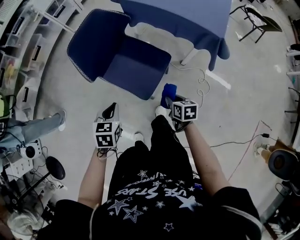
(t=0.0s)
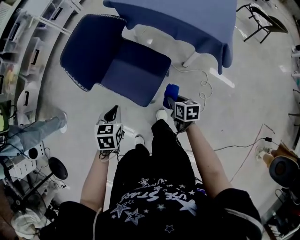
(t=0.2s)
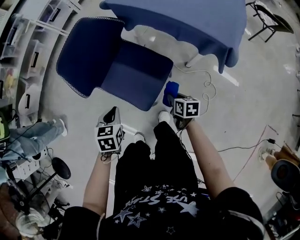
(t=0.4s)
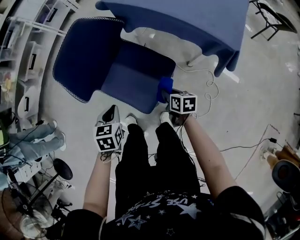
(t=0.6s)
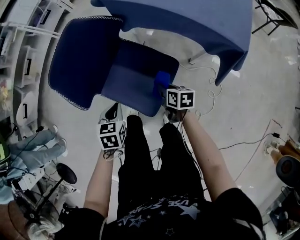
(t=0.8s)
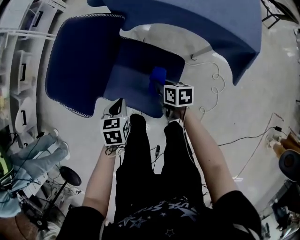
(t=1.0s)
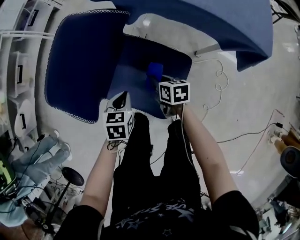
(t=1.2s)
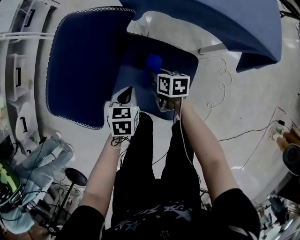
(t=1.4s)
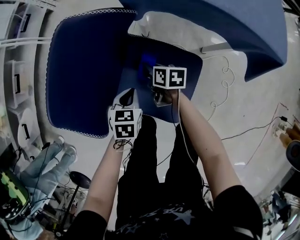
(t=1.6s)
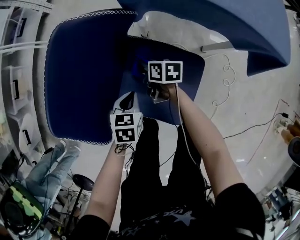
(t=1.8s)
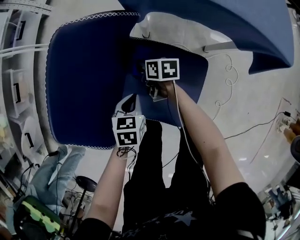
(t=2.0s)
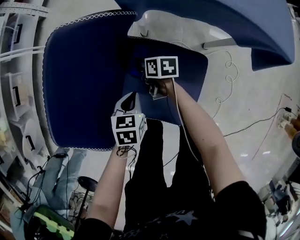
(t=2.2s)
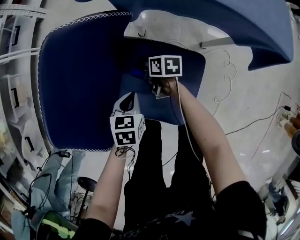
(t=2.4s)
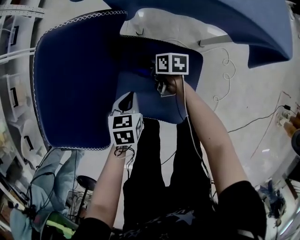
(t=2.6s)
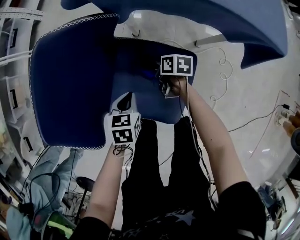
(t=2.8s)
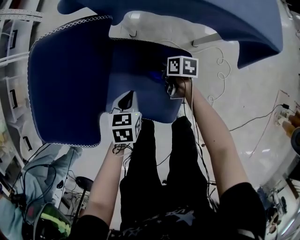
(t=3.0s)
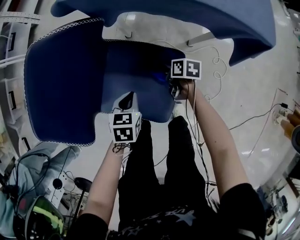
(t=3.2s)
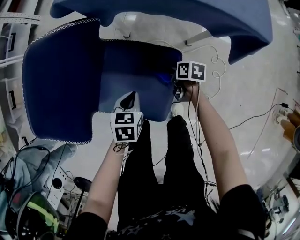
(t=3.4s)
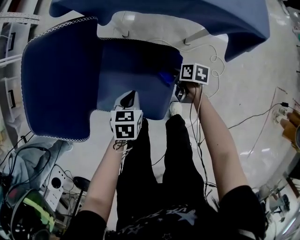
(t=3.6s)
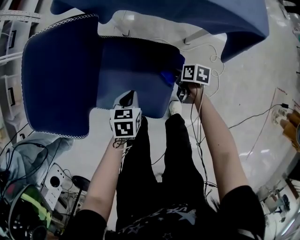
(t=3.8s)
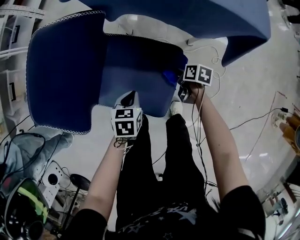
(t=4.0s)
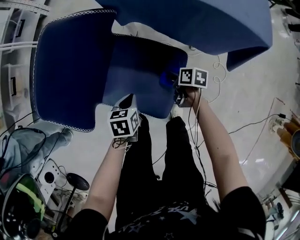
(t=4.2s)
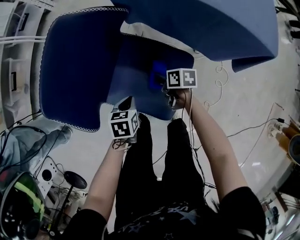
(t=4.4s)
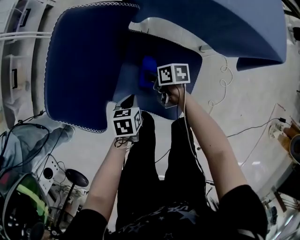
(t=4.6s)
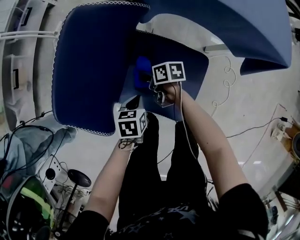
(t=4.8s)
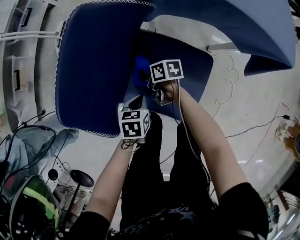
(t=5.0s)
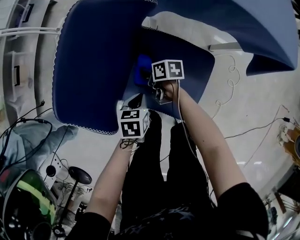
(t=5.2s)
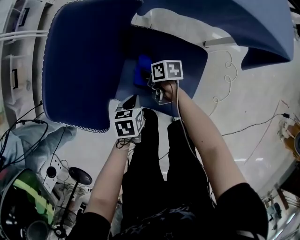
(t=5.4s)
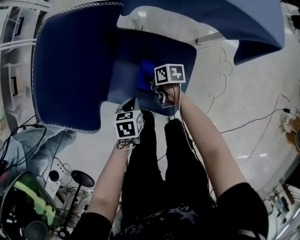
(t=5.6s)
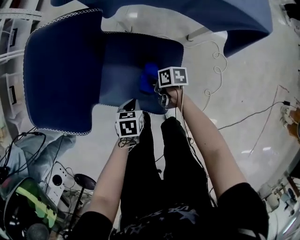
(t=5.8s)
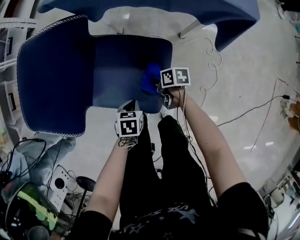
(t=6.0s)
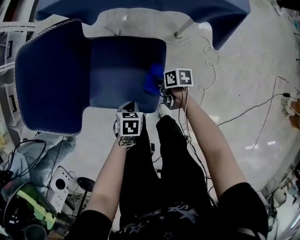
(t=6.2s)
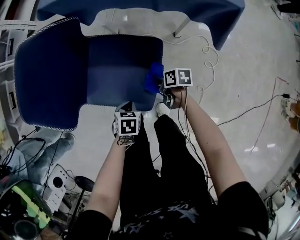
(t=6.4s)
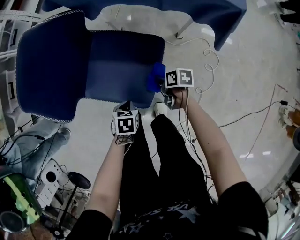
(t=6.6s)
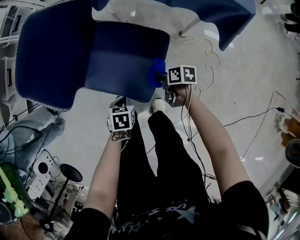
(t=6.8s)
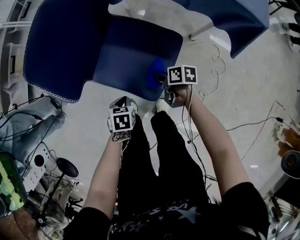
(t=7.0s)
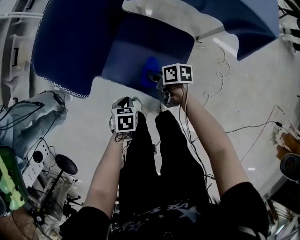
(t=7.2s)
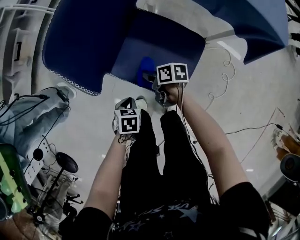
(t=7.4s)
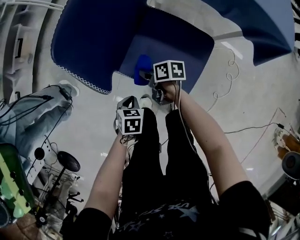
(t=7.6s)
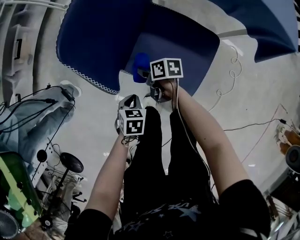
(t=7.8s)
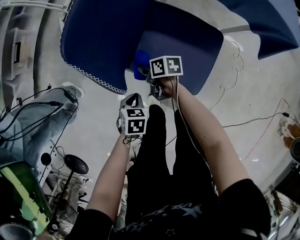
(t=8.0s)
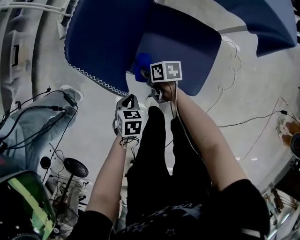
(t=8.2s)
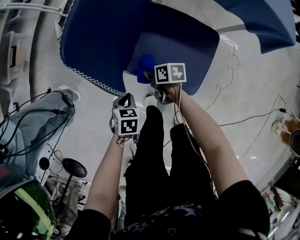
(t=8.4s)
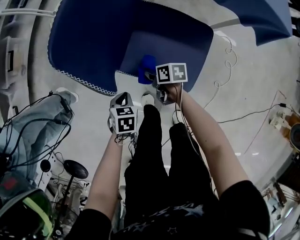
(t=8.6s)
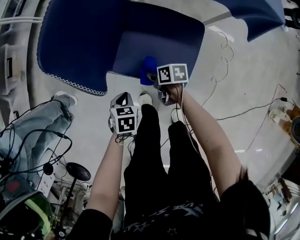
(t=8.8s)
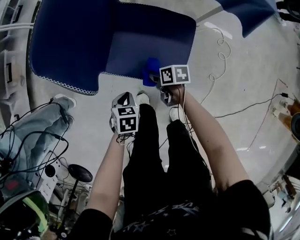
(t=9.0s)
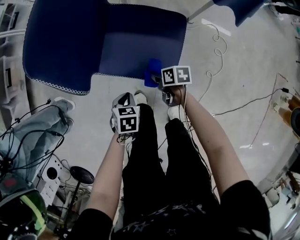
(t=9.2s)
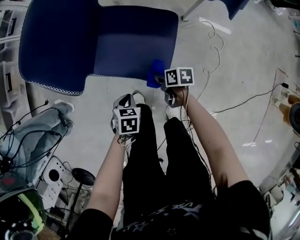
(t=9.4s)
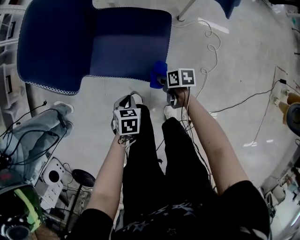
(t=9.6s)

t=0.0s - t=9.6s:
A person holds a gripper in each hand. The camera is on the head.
t=0.0s - t=1.6s: The left gripper is displaced forward and downward by approximately 35 cm. The right gripper shifts about 40 cm forward, downward and to the left, and changes its angle by roughly 20 degrees.
t=1.6s - t=3.2s: The right gripper heads to the right, covering roughly 15 cm. Meanwhile the left gripper heads to the right, covering some 10 cm.
t=3.2s - t=4.8s: The right gripper goes about 25 cm to the left, and changes its angle by some 20 degrees, while the left gripper moves to the left, about 10 cm.
t=4.8s - t=6.4s: The left gripper is displaced backward and to the right by some 15 cm, and turns by about 20 degrees. Meanwhile the right gripper goes approximately 30 cm to the right and backward.
t=6.4s - t=8.0s: Both grippers move to the left, approximately 30 cm.
t=8.0s - t=9.6s: The left gripper heads to the right and backward, covering roughly 15 cm, while the right gripper moves to the right and backward, approximately 30 cm.

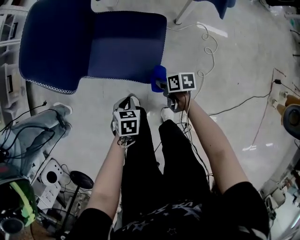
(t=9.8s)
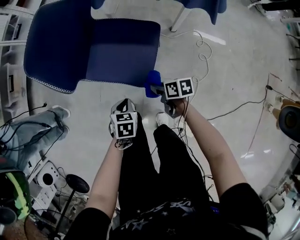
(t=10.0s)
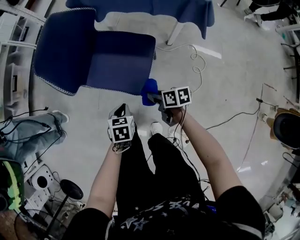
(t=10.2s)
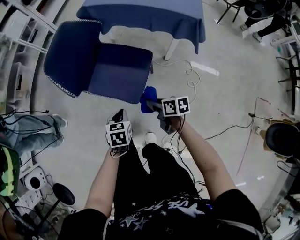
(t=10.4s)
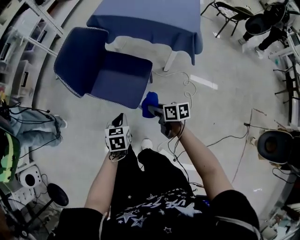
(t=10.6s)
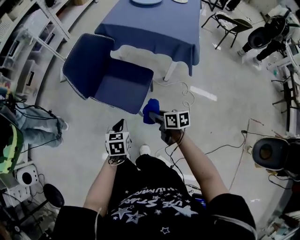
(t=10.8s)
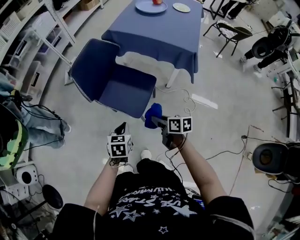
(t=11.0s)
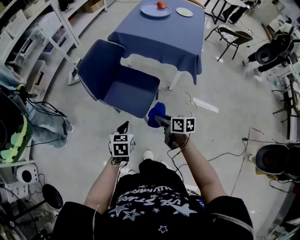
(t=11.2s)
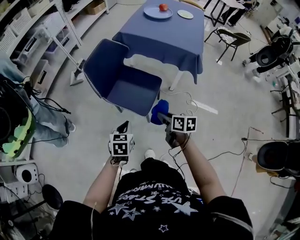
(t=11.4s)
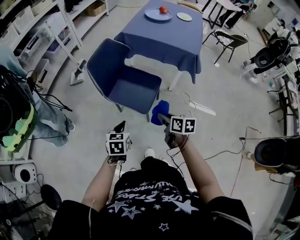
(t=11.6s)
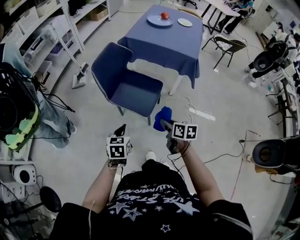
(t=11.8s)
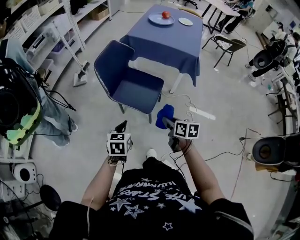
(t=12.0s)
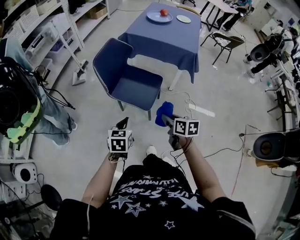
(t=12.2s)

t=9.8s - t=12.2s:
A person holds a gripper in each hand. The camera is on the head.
t=9.8s - t=11.0s: The grippers both shift upward by about 25 cm. The left gripper swivels approximately 30 degrees. Meanwhile the right gripper swivels about 30 degrees.
t=11.0s - t=12.2s: The left gripper travels to the left, upward and backward by approximately 15 cm. Meanwhile the right gripper moves backward, upward and to the left, roughly 15 cm.

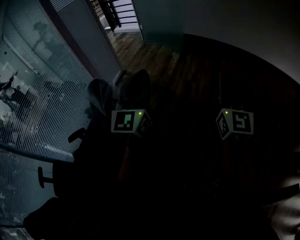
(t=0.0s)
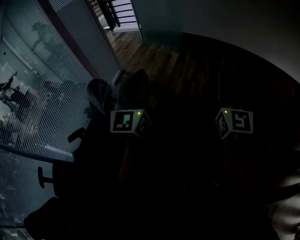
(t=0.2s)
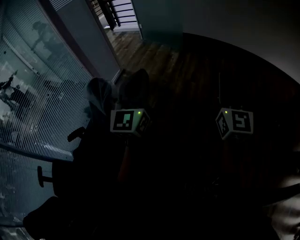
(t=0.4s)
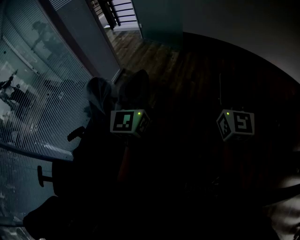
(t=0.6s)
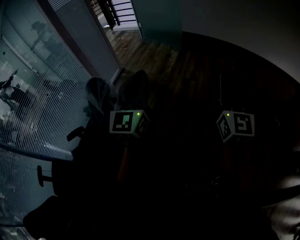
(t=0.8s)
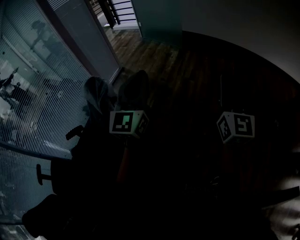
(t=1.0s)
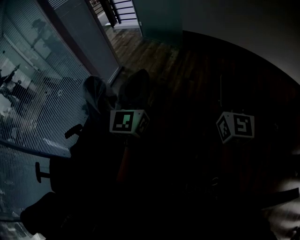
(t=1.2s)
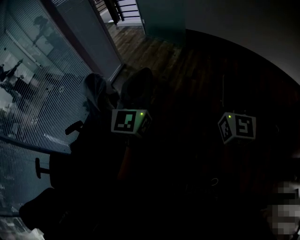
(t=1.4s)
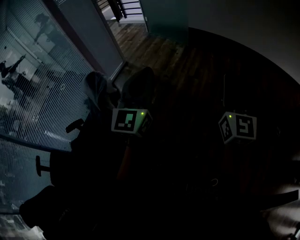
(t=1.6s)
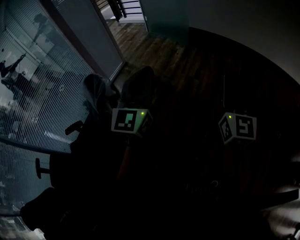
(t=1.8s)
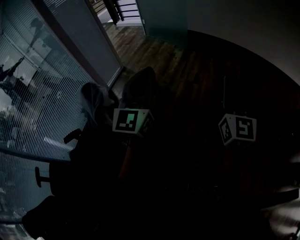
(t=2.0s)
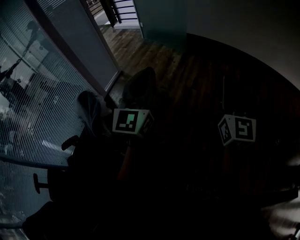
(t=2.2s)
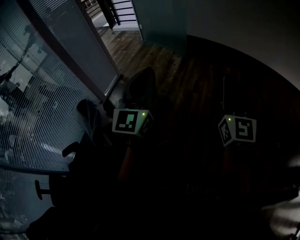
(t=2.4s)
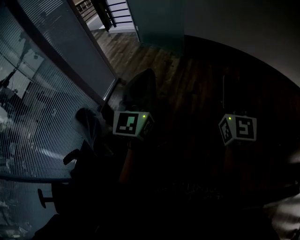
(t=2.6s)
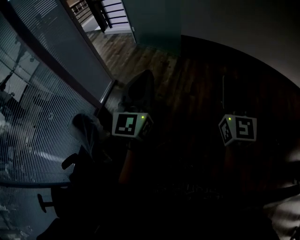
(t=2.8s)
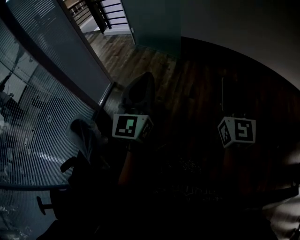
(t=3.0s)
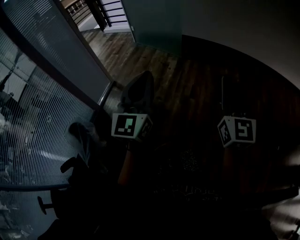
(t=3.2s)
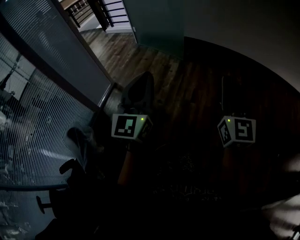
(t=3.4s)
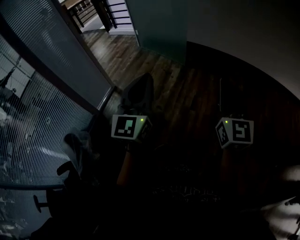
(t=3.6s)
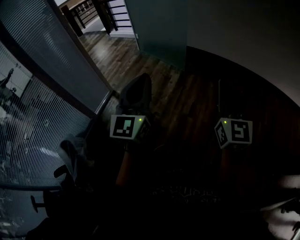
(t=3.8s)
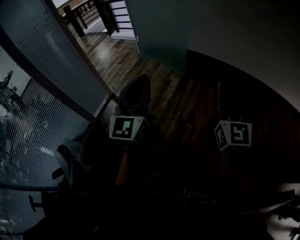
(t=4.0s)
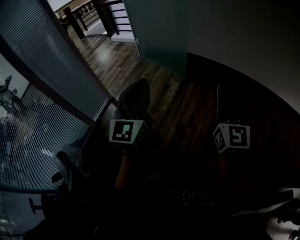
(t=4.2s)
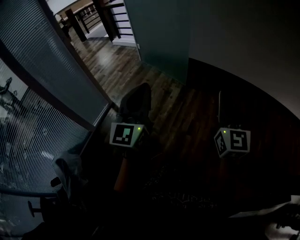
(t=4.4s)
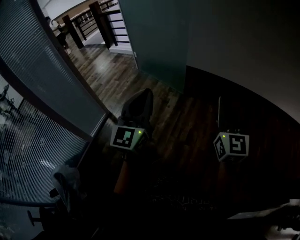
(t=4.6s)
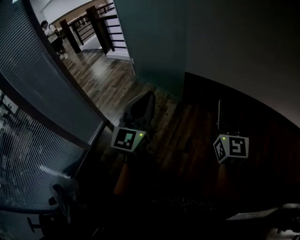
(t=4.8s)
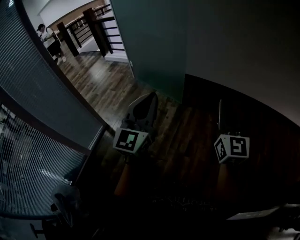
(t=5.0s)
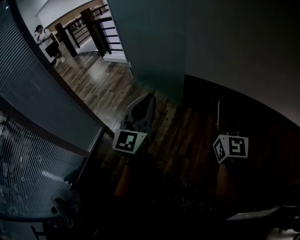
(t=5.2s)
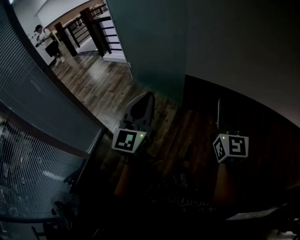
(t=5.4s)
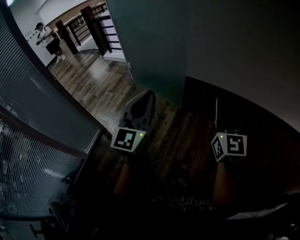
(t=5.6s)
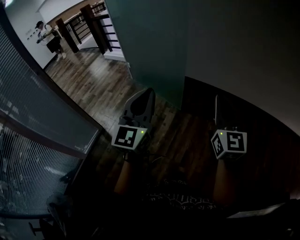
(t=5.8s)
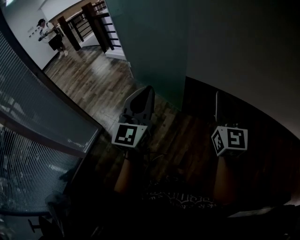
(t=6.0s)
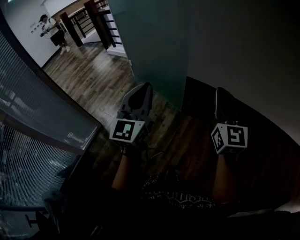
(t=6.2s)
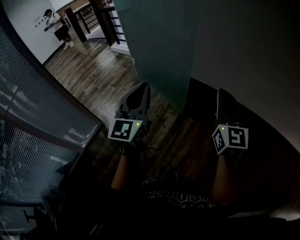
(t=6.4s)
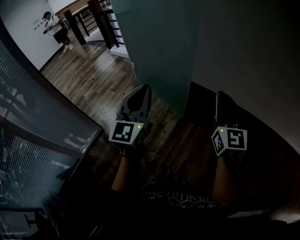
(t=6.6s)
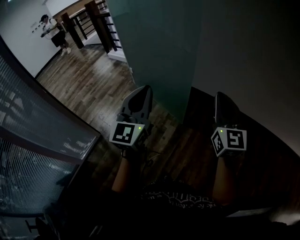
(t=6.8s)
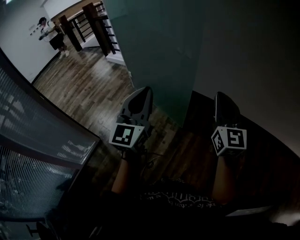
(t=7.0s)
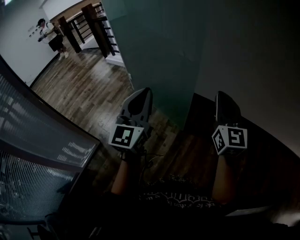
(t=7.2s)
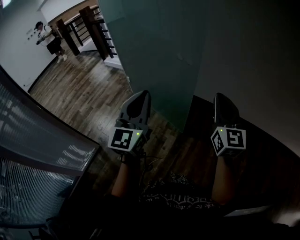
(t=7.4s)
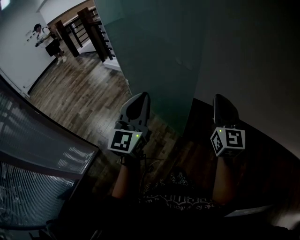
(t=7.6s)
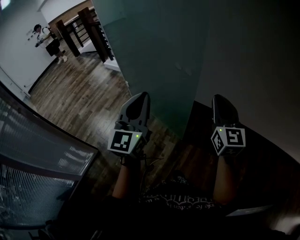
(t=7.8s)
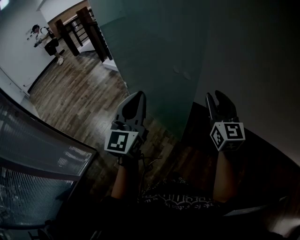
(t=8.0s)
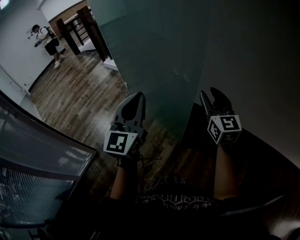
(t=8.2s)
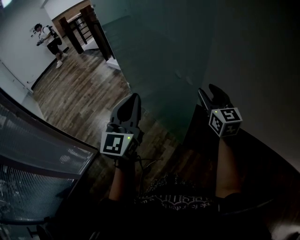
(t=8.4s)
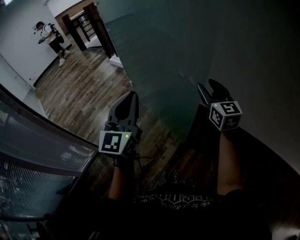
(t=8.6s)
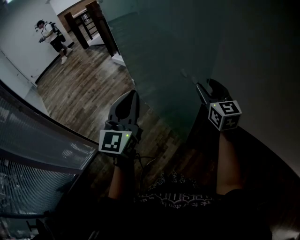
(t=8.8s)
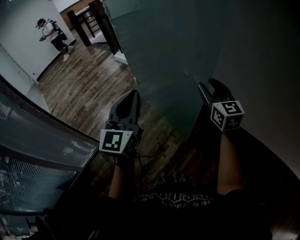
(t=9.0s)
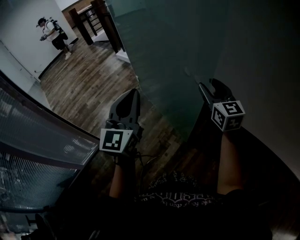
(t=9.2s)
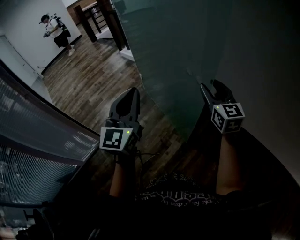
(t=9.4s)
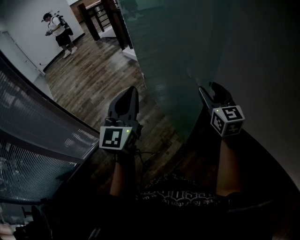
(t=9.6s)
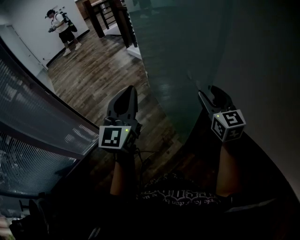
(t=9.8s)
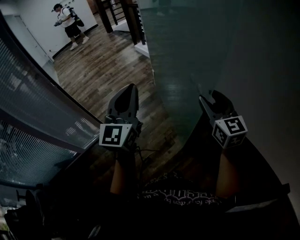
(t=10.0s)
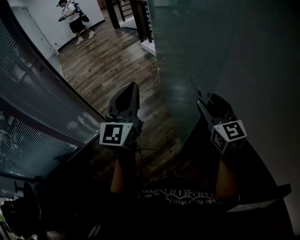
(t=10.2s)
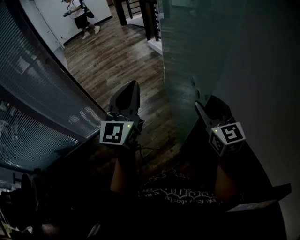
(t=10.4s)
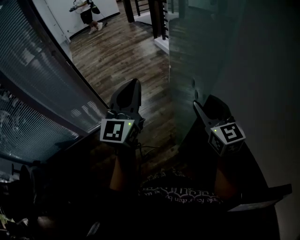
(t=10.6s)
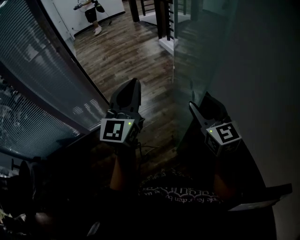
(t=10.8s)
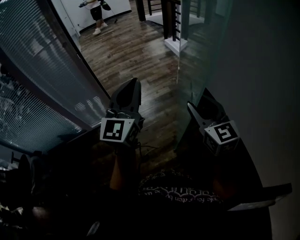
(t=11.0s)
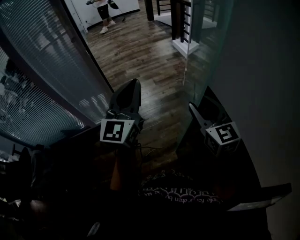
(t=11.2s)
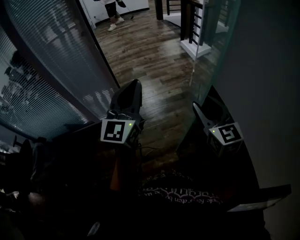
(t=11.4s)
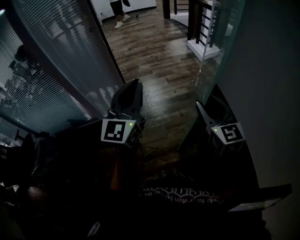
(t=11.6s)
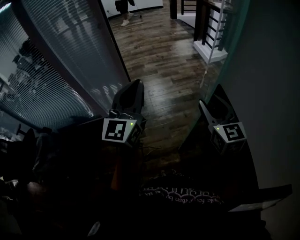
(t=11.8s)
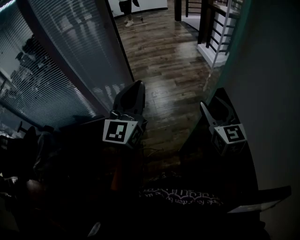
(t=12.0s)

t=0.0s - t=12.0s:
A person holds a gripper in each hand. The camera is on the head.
t=0.0s - t=1.6s: The two grippers go roughly 5 cm to the right.
t=1.6s - t=3.0s: Both grippers move forward, approximately 30 cm.
t=3.0s - t=4.4s: Both grippers move forward, roughly 35 cm.
t=4.4s - t=6.0s: The two grippers go about 40 cm forward.
t=6.0s - t=7.6s: The two grippers go about 30 cm forward.
t=7.6s - t=9.0s: The right gripper moves forward, approximately 20 cm, changes its angle by some 20 degrees, and opens. The left gripper travels forward by roughly 10 cm.
t=9.0s - t=10.4s: Both grippers move to the left, approximately 15 cm. The right gripper rotates approximately 20 degrees.
t=10.4s - t=12.0s: Both grippers travel together to the left, about 25 cm.
